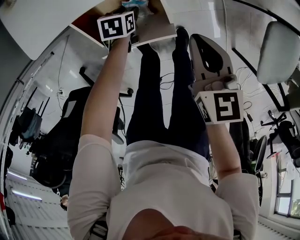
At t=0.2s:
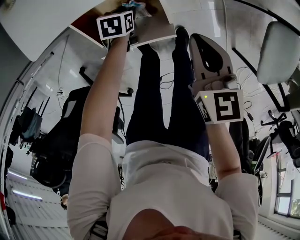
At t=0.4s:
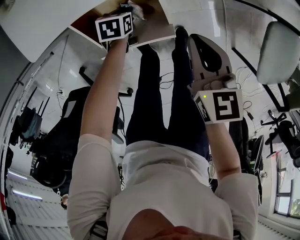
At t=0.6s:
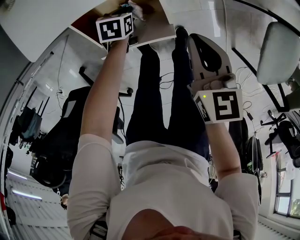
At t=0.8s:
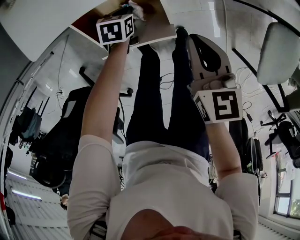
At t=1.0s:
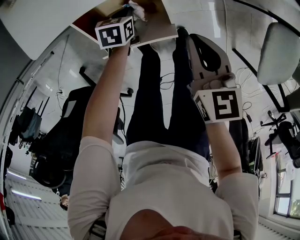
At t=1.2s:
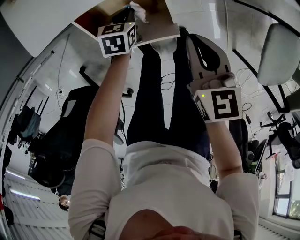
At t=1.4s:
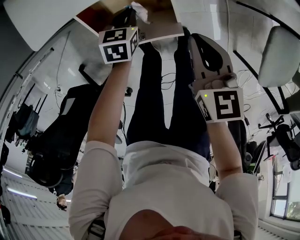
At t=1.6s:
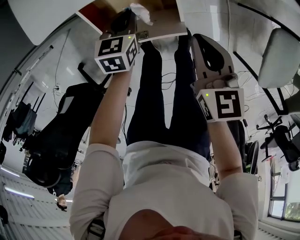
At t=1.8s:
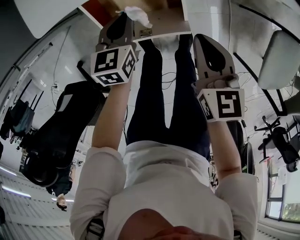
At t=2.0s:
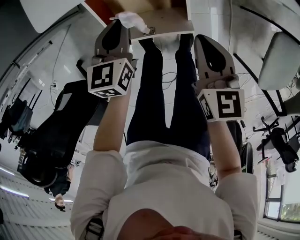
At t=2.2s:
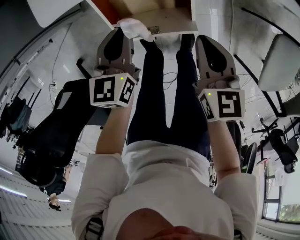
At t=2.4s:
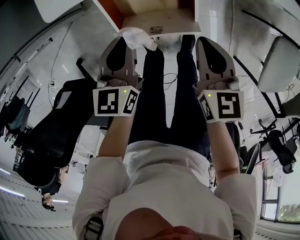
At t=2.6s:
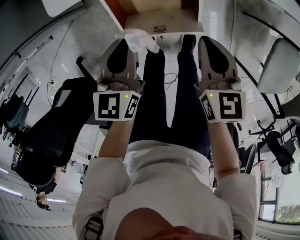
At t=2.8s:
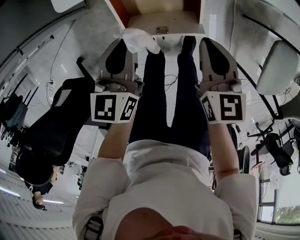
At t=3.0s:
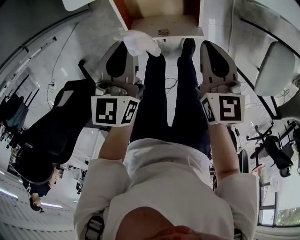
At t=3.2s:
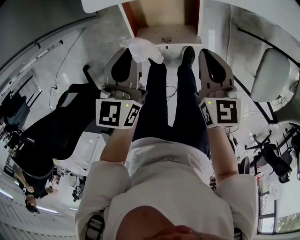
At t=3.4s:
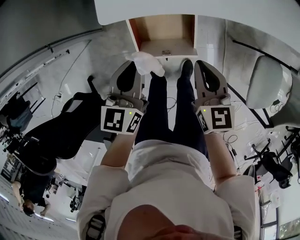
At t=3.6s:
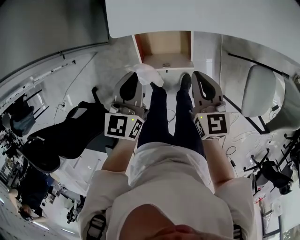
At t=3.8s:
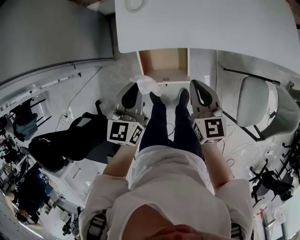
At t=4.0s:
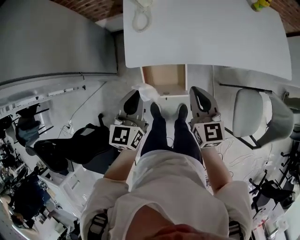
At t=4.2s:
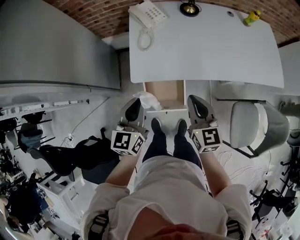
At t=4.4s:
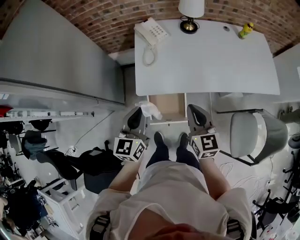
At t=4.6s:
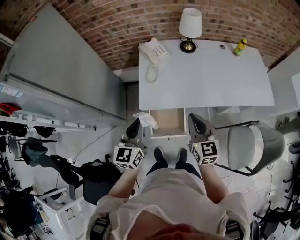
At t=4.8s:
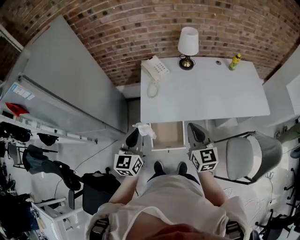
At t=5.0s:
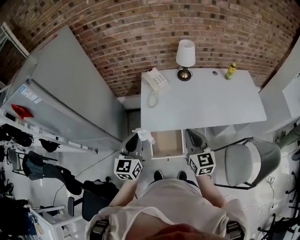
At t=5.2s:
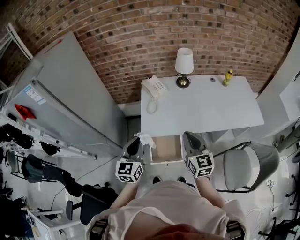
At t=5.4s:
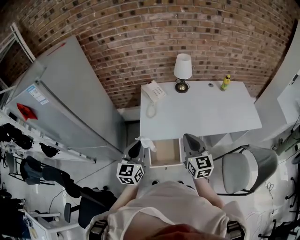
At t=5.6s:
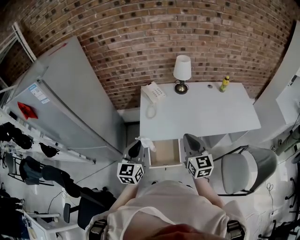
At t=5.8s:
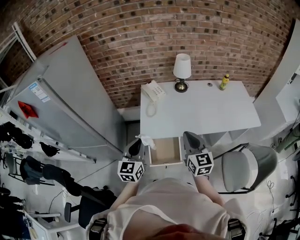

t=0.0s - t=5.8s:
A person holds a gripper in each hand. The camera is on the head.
t=0.0s - t=1.4s: The left gripper is displaced upward by roughly 5 cm, and closes.
t=1.4s - t=2.8s: The right gripper moves to the left, roughly 5 cm; the left gripper travels upward by approximately 20 cm, and swivels about 30 degrees.
t=2.8s - t=4.4s: Both grippers travel together upward, roughly 35 cm. The right gripper turns by some 20 degrees, while the left gripper swivels some 20 degrees.
t=4.4s - t=5.8s: Both grippers travel together upward, some 10 cm.

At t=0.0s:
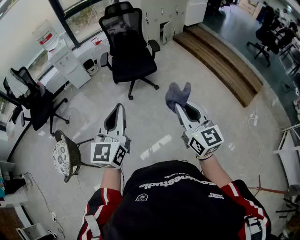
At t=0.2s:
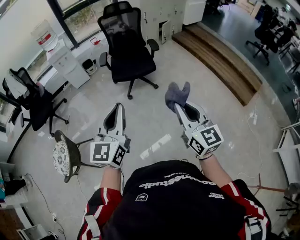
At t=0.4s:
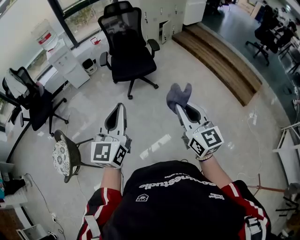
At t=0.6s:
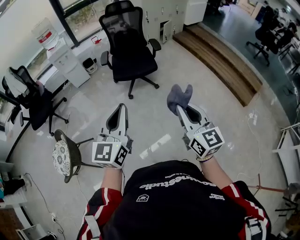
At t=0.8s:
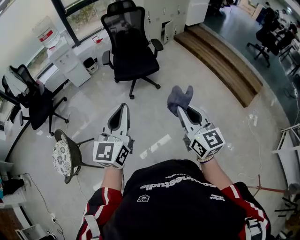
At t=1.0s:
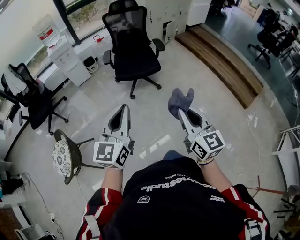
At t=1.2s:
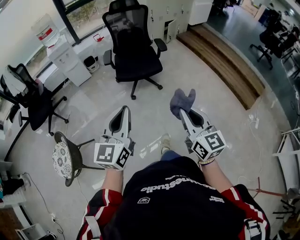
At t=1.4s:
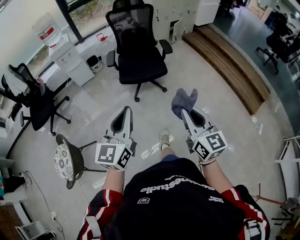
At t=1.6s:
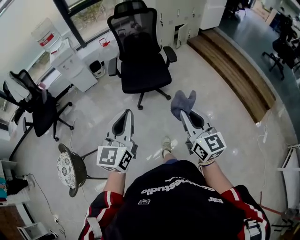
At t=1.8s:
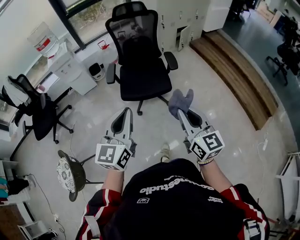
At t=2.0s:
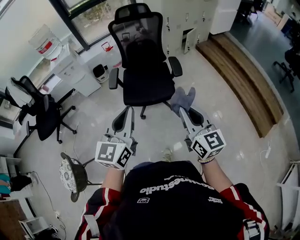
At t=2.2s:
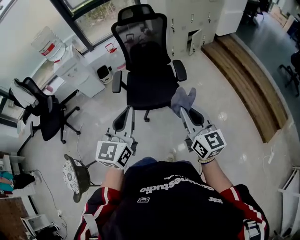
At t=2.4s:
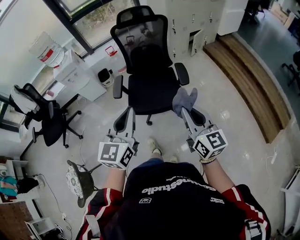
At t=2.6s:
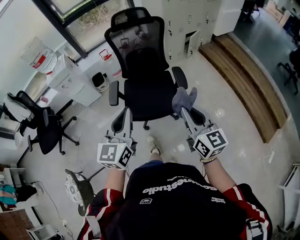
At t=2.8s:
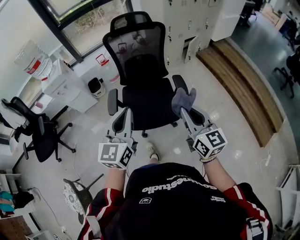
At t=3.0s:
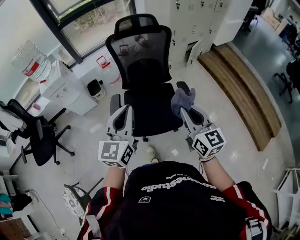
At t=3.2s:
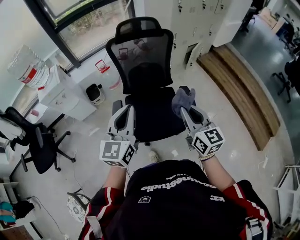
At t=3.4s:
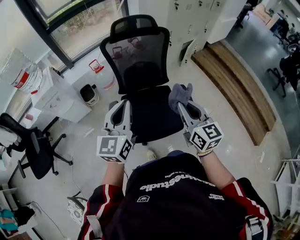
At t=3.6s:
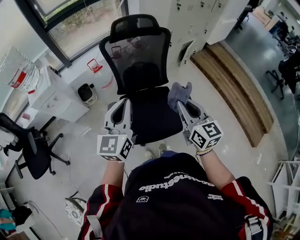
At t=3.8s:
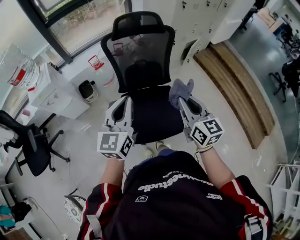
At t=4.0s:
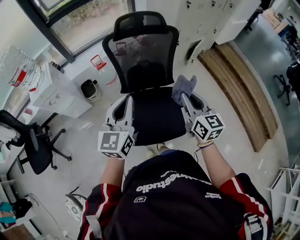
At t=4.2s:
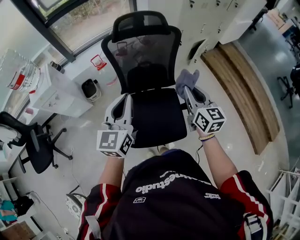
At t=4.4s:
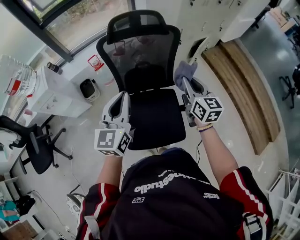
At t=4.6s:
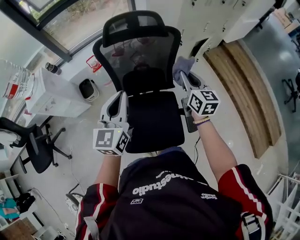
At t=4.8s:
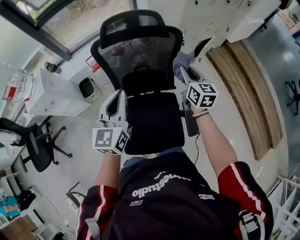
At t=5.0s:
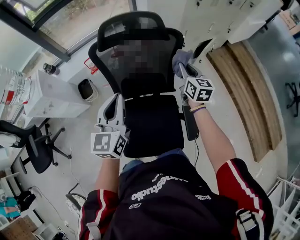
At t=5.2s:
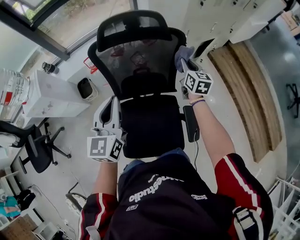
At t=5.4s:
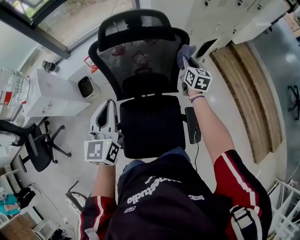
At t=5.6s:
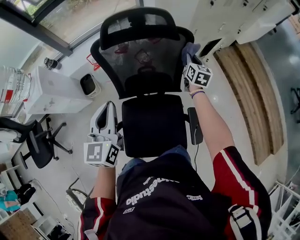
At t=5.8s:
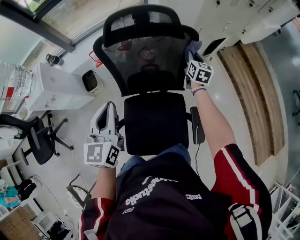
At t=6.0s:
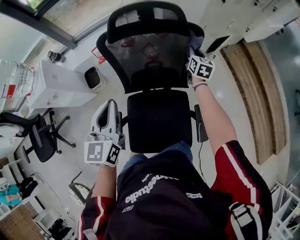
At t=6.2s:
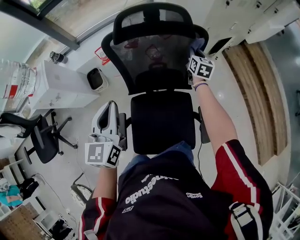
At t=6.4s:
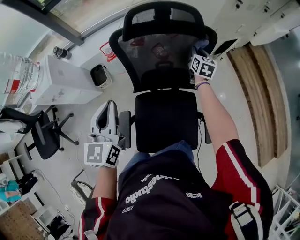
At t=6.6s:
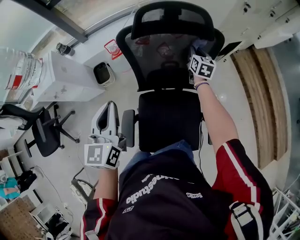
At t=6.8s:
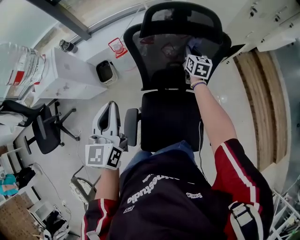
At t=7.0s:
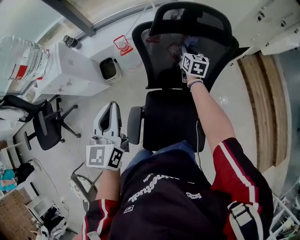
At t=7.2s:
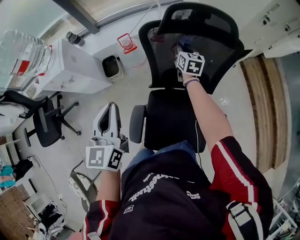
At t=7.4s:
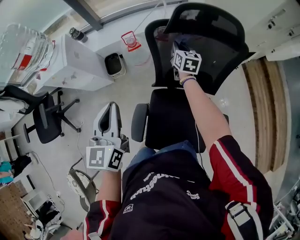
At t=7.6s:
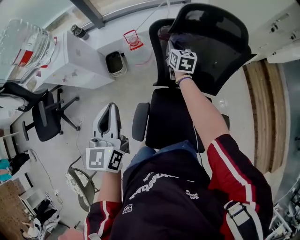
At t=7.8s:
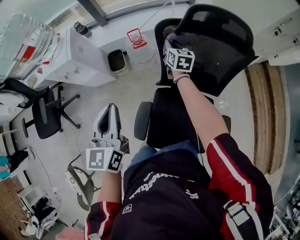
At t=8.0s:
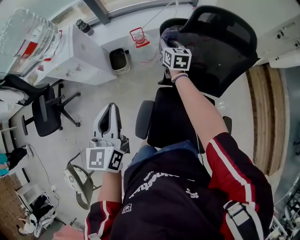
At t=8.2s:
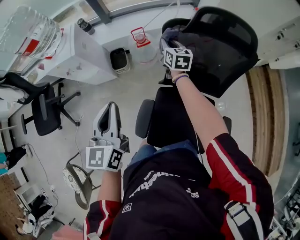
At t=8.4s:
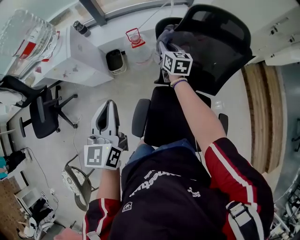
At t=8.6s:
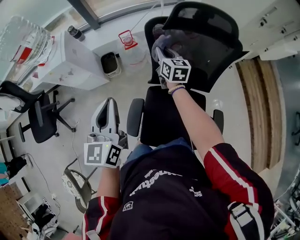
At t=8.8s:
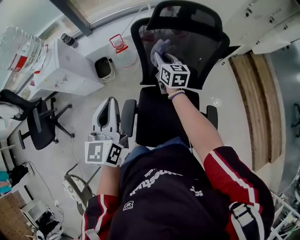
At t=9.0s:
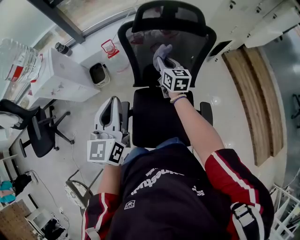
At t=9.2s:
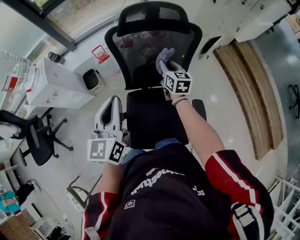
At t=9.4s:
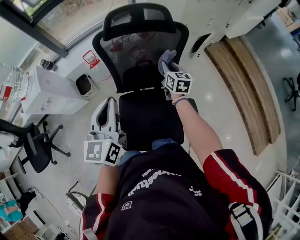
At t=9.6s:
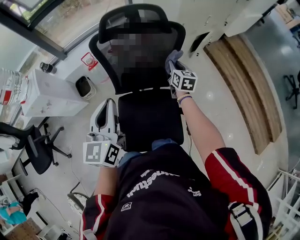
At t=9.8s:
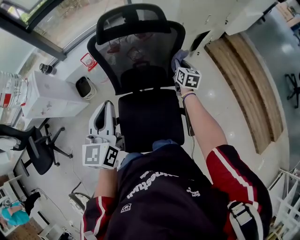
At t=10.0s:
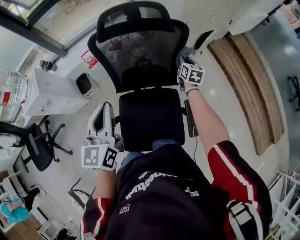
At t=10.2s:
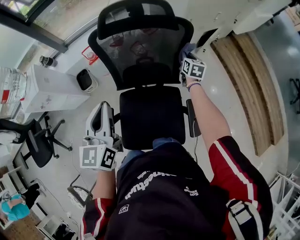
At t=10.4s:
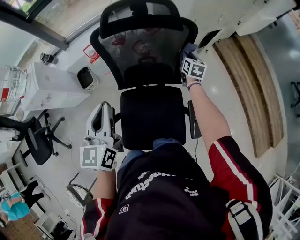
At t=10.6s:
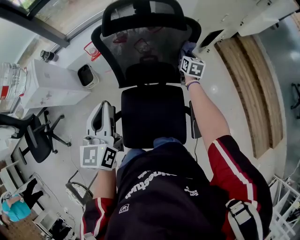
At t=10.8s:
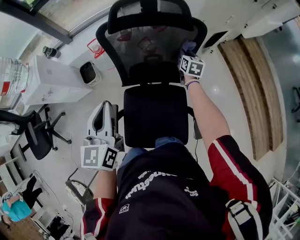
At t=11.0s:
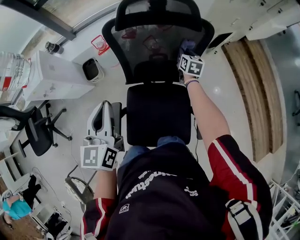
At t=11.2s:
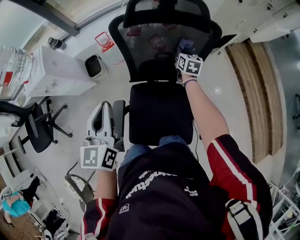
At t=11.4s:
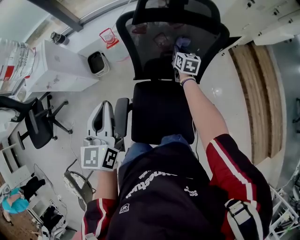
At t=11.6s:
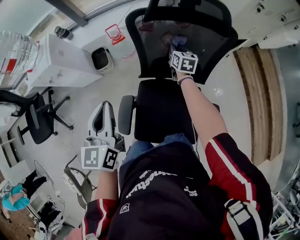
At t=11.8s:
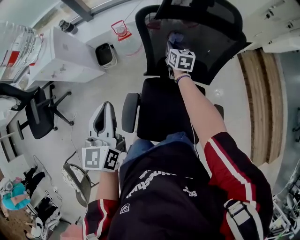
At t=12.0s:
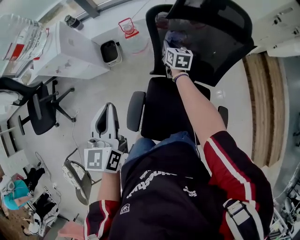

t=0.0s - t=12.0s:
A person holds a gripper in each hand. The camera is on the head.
t=0.0s - t=1.6s: Both grippers move forward, approximately 25 cm.
t=1.6s - t=3.0s: The two grippers travel together, forward, some 60 cm.
t=3.0s - t=4.4s: The two grippers go some 35 cm forward.
t=4.4s - t=6.0s: The right gripper heads forward and downward, covering some 40 cm; the left gripper moves forward and downward, about 15 cm.
t=6.0s - t=7.6s: The left gripper moves to the left, some 20 cm. Meanwhile the right gripper moves to the left, approximately 40 cm.
t=7.6s - t=9.0s: The right gripper moves backward and to the right, about 20 cm, while the left gripper moves to the right and backward, some 15 cm.
t=9.0s - t=10.4s: The right gripper travels to the right and downward by approximately 30 cm, and changes its angle by some 20 degrees. Meanwhile the left gripper shifts about 10 cm to the right and forward.
t=10.4s - t=12.0s: The right gripper shifts roughly 40 cm to the left, and rotates roughly 20 degrees, while the left gripper heads to the left, covering some 20 cm.

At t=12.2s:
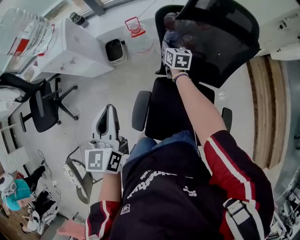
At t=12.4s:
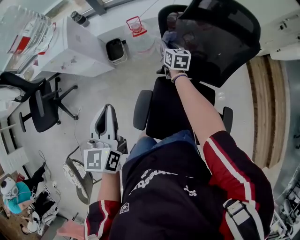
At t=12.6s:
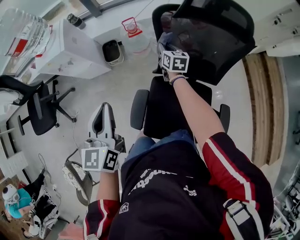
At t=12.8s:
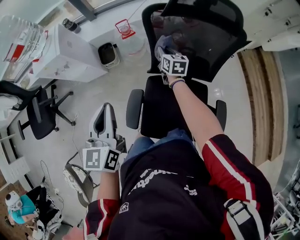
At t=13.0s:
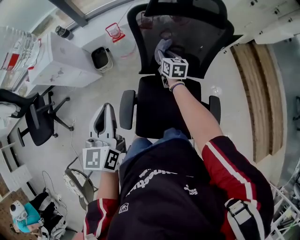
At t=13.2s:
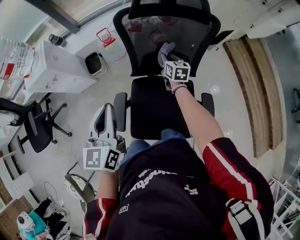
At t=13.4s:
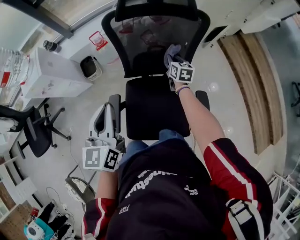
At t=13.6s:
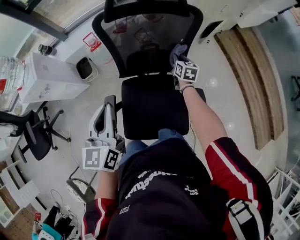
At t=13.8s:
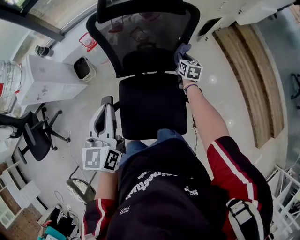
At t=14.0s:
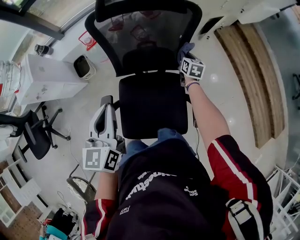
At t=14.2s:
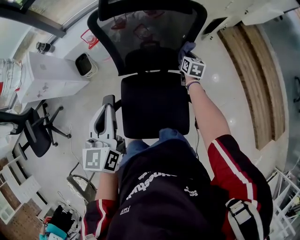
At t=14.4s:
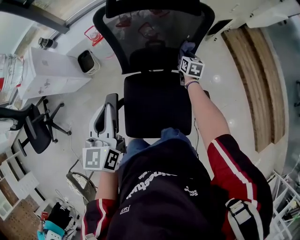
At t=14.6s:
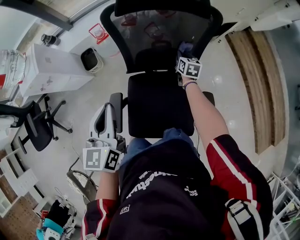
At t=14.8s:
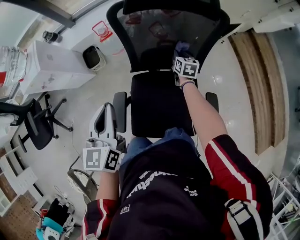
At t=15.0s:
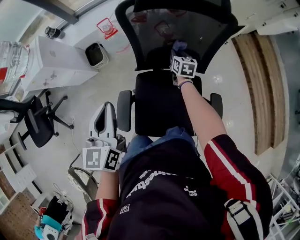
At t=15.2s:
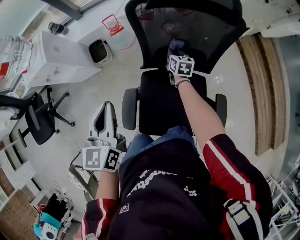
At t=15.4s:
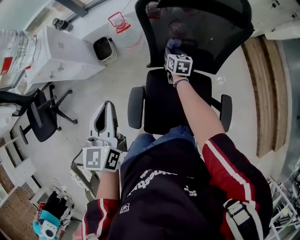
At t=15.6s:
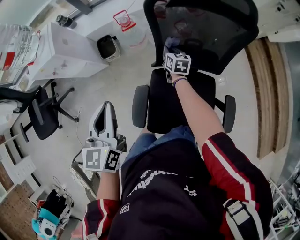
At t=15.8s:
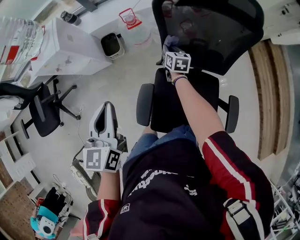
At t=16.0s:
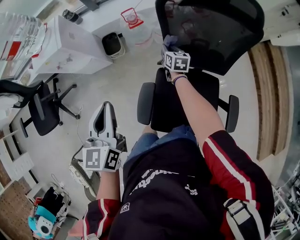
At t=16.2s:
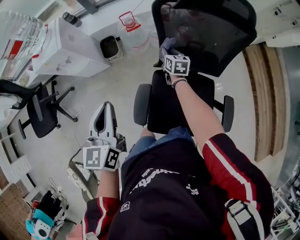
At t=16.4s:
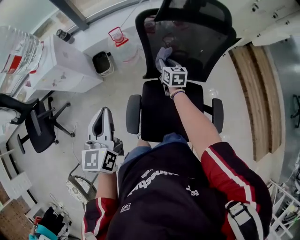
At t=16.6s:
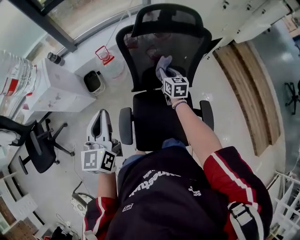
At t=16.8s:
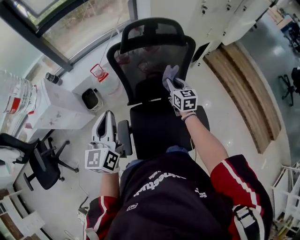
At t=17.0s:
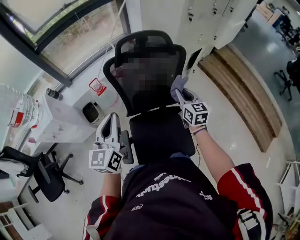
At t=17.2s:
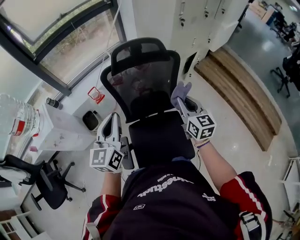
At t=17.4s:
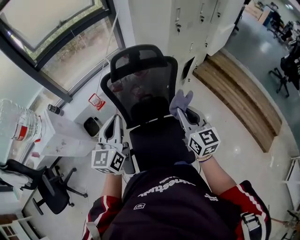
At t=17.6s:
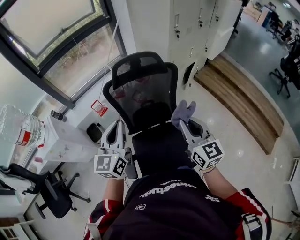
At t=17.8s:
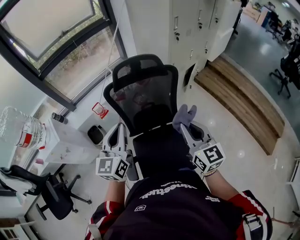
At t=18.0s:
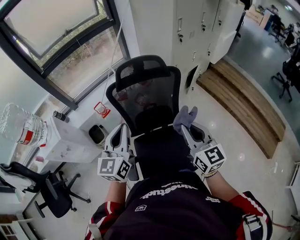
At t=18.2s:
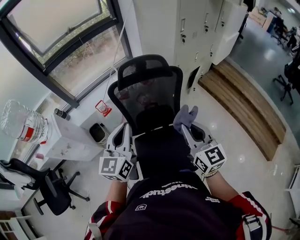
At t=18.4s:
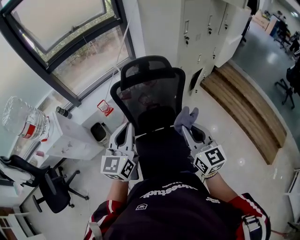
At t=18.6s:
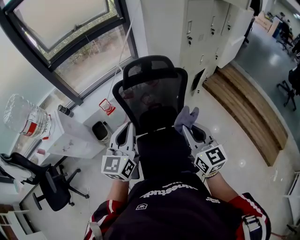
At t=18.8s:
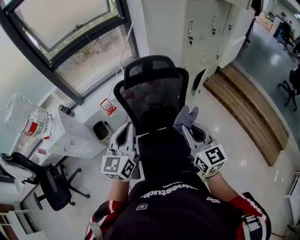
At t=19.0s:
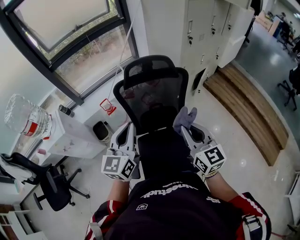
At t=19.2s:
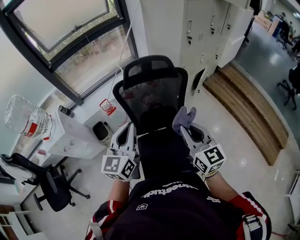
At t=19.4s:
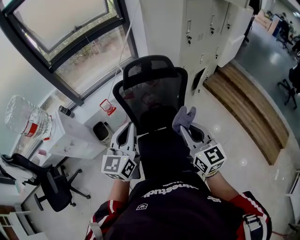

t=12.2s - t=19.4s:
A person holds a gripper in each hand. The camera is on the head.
t=12.2s - t=13.6s: The left gripper is displaced to the right by approximately 20 cm, while the right gripper moves to the right and backward, some 35 cm, and turns by approximately 20 degrees.
t=13.6s - t=15.0s: Both grippers travel together to the left, about 15 cm.
t=15.0s - t=16.6s: The left gripper is displaced upward and to the left by about 10 cm. Meanwhile the right gripper shifts approximately 15 cm upward and backward, and reaches roughly 20 cm to the left, then returns.
t=16.6s - t=18.0s: The left gripper is displaced to the right and upward by approximately 20 cm, and turns by roughly 20 degrees, while the right gripper travels upward, backward and to the right by roughly 40 cm, and changes its angle by about 20 degrees.
t=18.0s - t=19.4s: The grippers move only a little.
